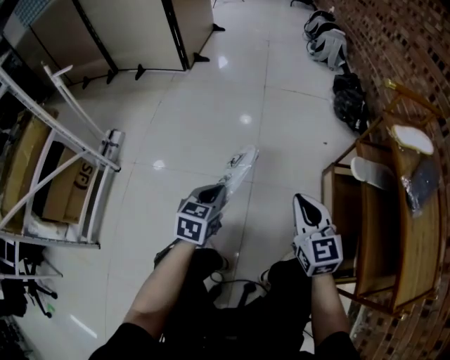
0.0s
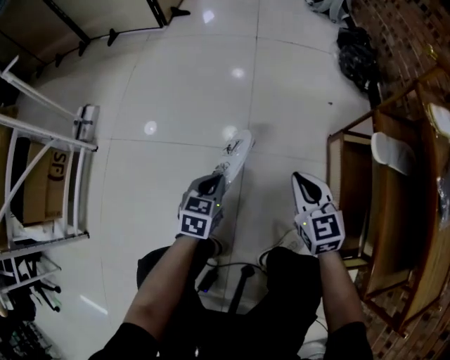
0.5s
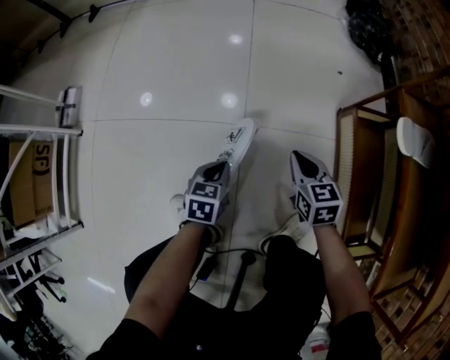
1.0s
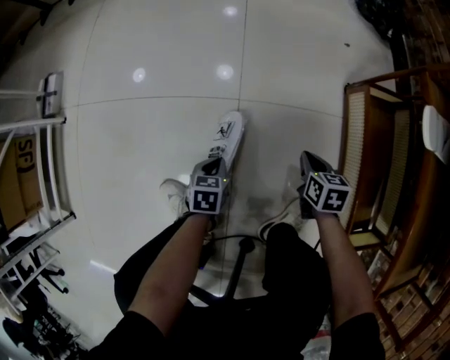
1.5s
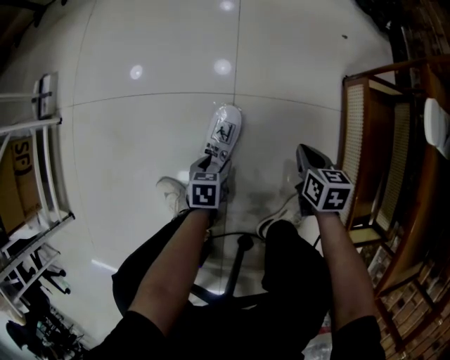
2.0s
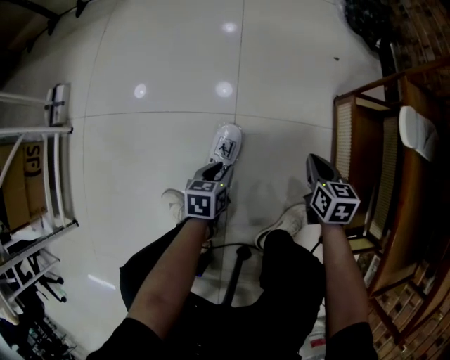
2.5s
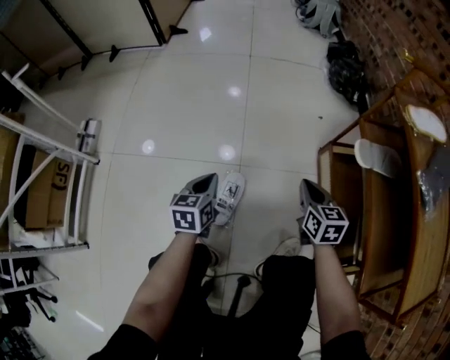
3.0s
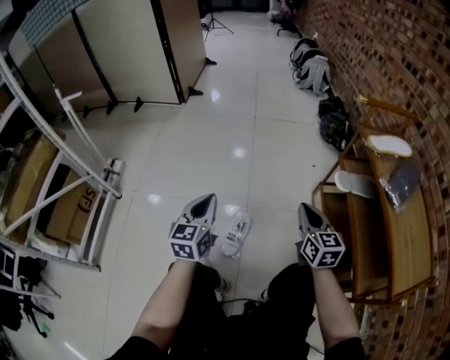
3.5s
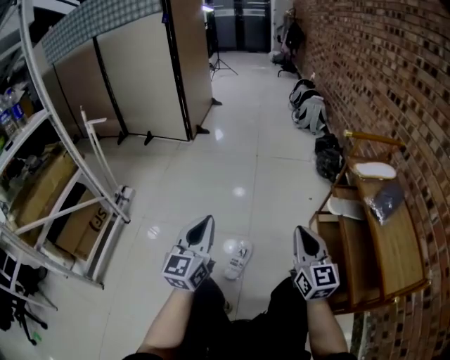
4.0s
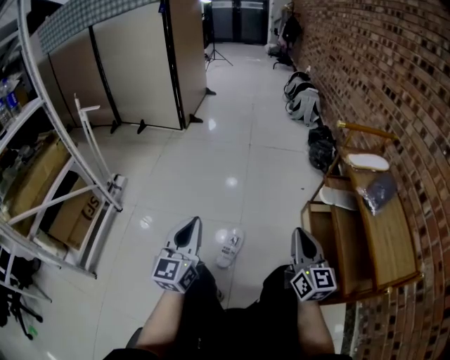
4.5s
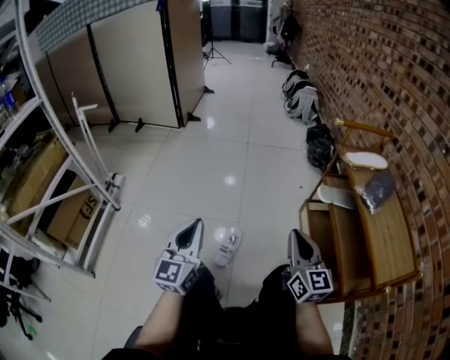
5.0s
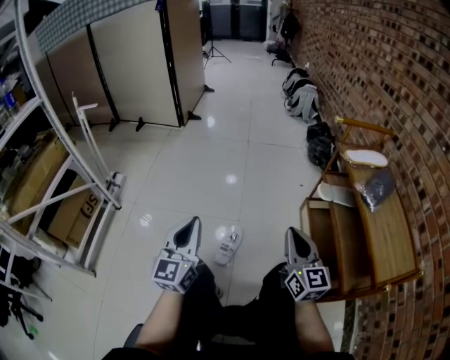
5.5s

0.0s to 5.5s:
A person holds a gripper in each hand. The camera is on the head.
0.0s to 2.0s: The grippers both shift downward by roughly 40 cm. The right gripper tilts its fingers some 40 degrees downward; the left gripper tips its fingers downward by some 30 degrees, and opens up.
2.0s to 3.5s: The grippers both shift upward by some 40 cm. The left gripper angles its fingers upward, by some 50 degrees, and closes. Meanwhile the right gripper points its fingers about 40 degrees further upward.
3.5s to 5.5s: The two grippers go roughly 15 cm backward and upward.

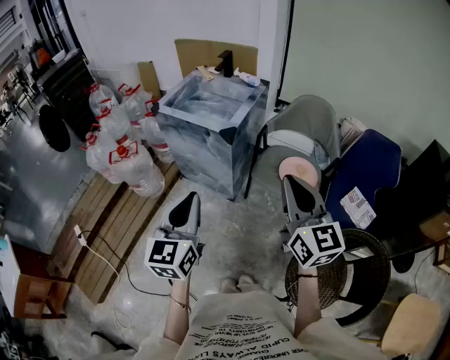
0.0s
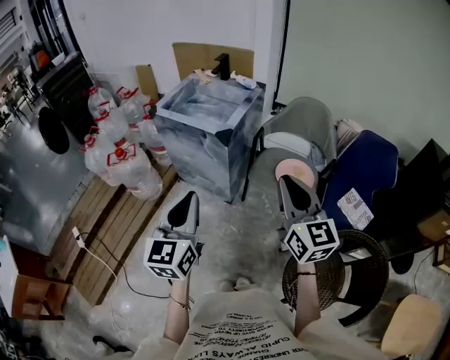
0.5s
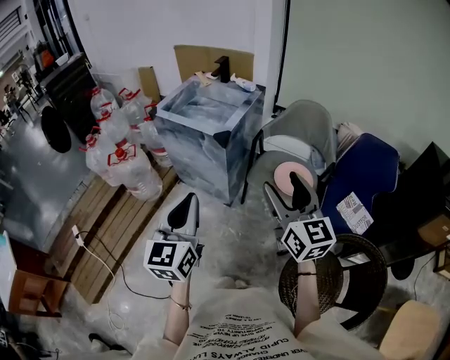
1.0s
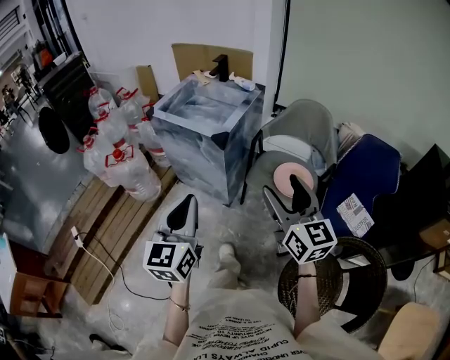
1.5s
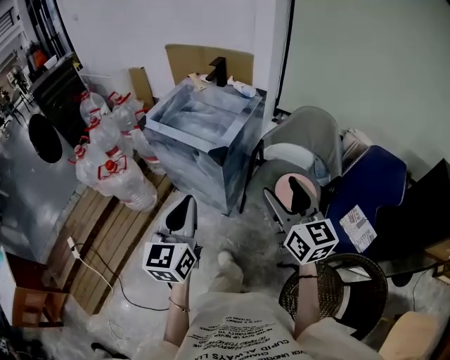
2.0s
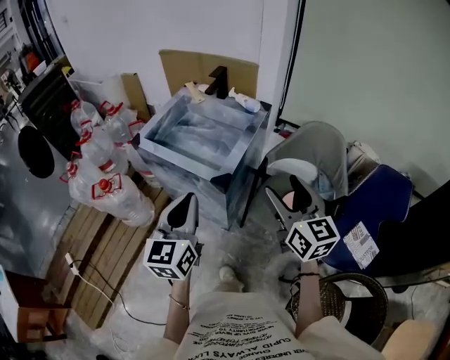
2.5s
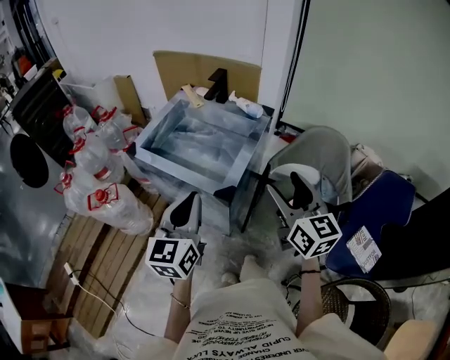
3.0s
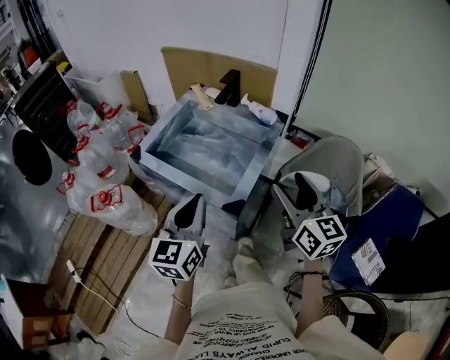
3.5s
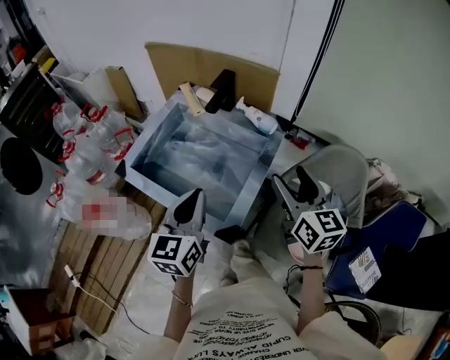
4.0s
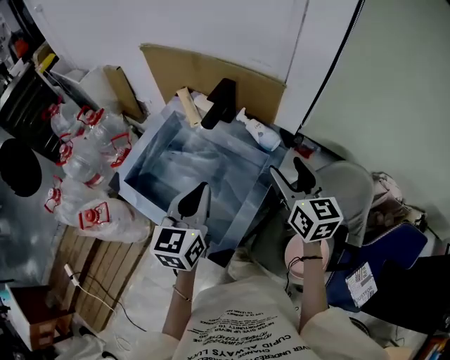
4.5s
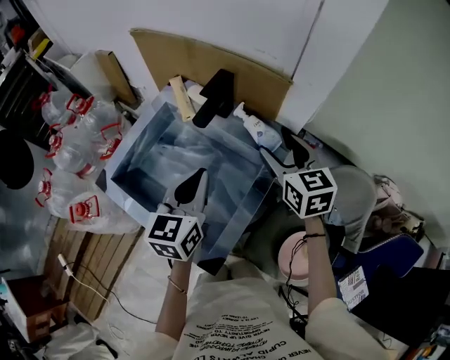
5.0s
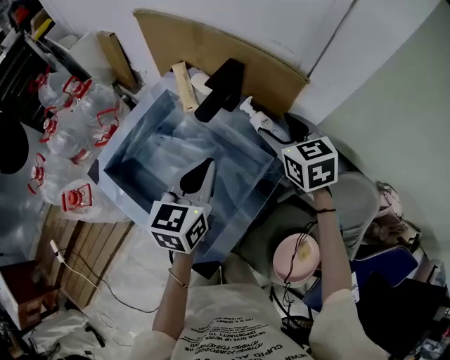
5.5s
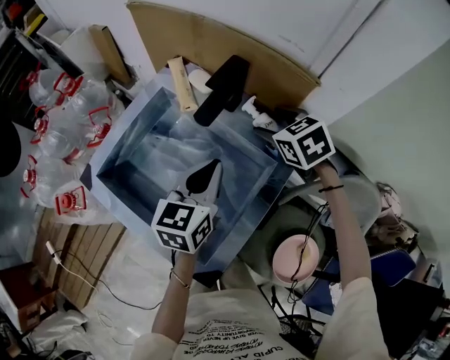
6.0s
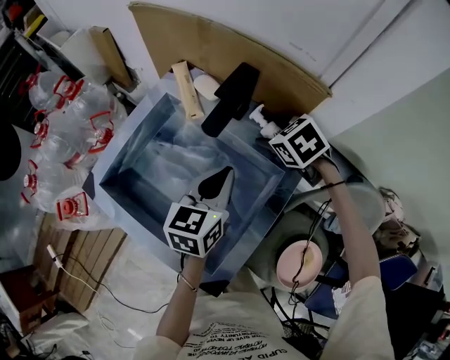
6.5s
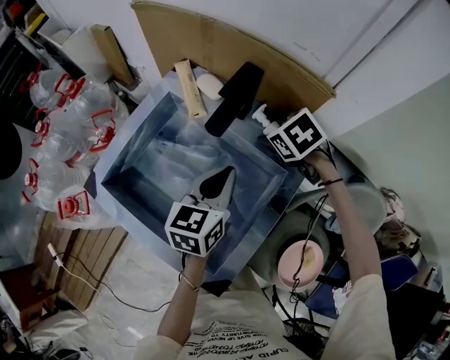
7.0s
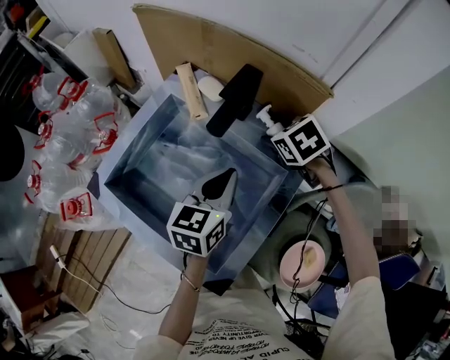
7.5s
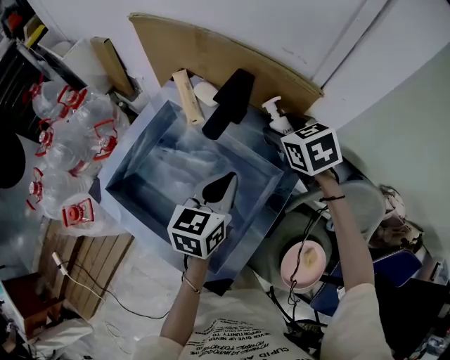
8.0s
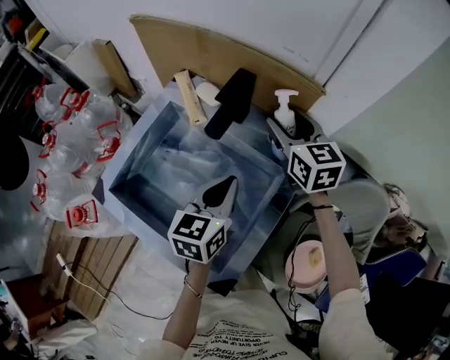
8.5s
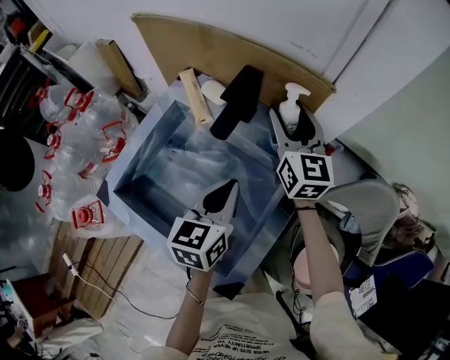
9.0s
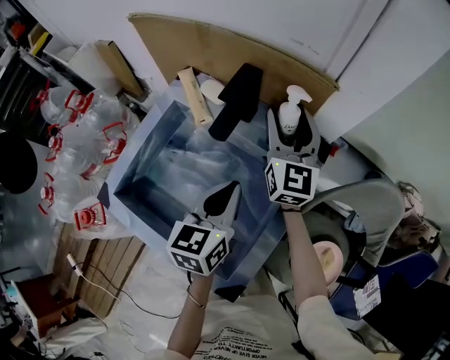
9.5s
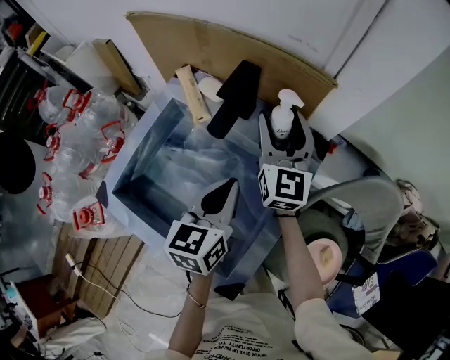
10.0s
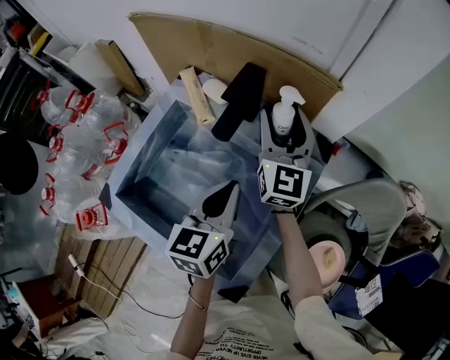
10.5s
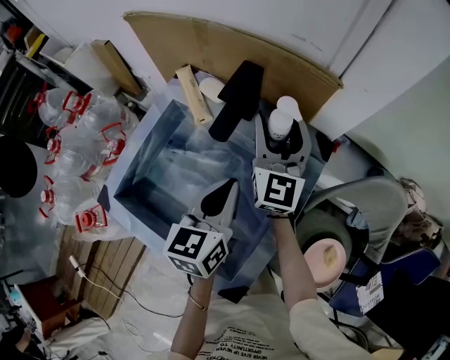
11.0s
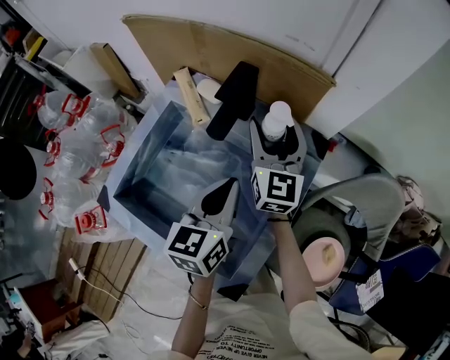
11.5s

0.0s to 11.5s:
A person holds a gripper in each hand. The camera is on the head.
0.0s to 2.0s: The left gripper is displaced forward by approximately 10 cm; the right gripper travels forward and downward by about 15 cm, and opens its fingers.
2.0s to 4.0s: Both grippers move forward, approximately 35 cm.
4.0s to 6.0s: The two grippers go about 25 cm forward and downward. The right gripper tilts its fingers approximately 40 degrees downward.
6.0s to 7.5s: The grippers move only a little.
7.5s to 9.5s: The right gripper travels upward by about 10 cm, and angles its fingers upward, by roughly 70 degrees.
9.5s to 11.5s: The grippers move only a little.

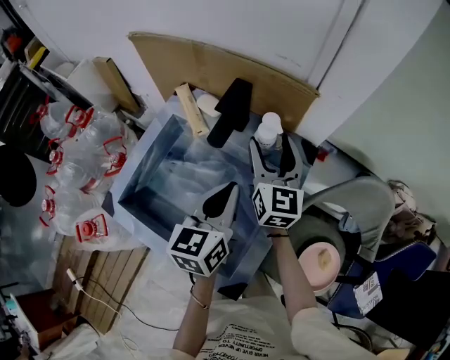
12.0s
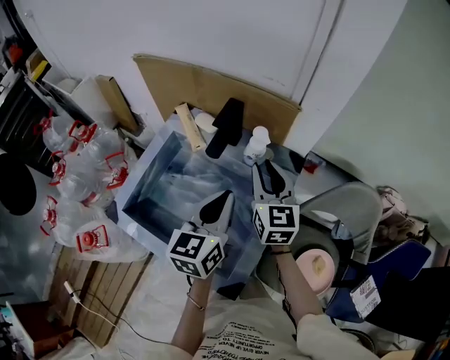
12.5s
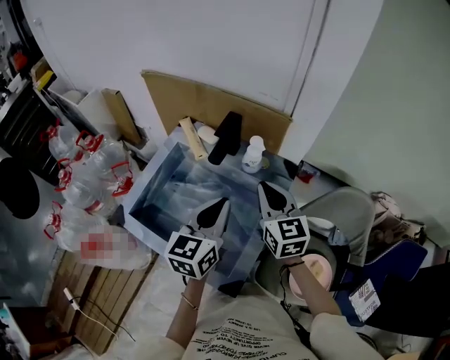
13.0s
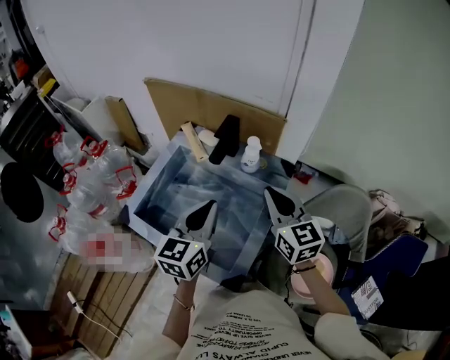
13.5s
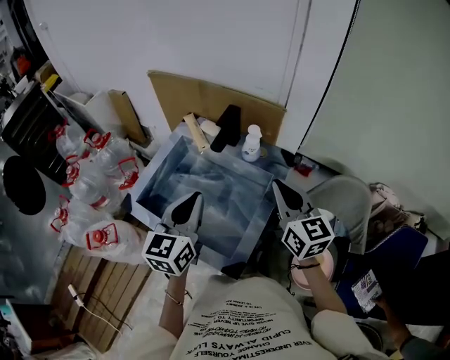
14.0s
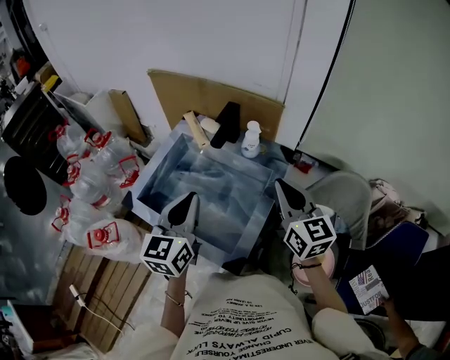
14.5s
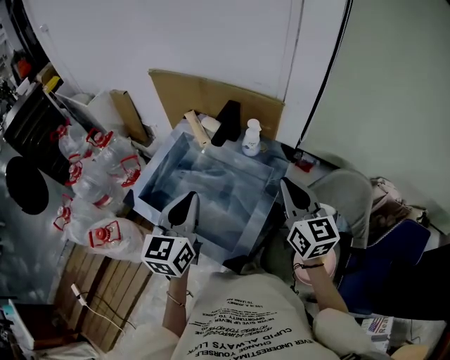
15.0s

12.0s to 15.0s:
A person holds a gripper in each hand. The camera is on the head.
12.0s to 13.5s: The right gripper shifts some 15 cm backward and upward, and closes its fingers; the left gripper goes approximately 10 cm upward and backward.
13.5s to 15.0s: The left gripper shifts some 5 cm to the left; the right gripper changes place by about 5 cm.

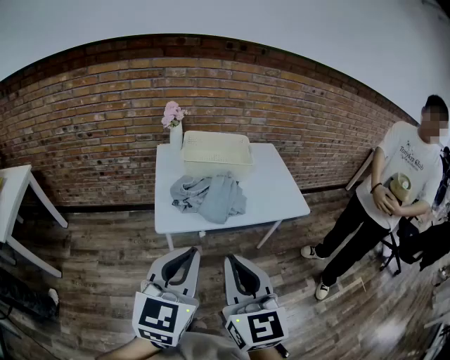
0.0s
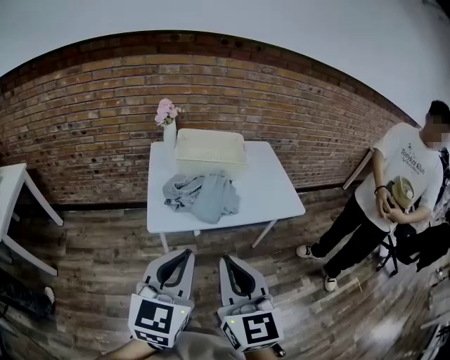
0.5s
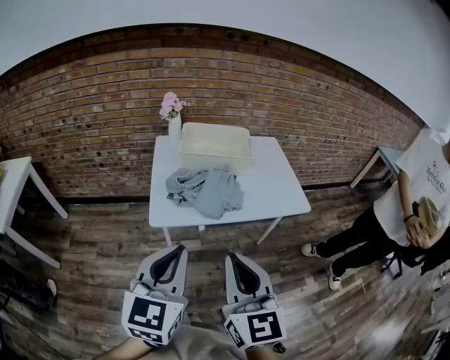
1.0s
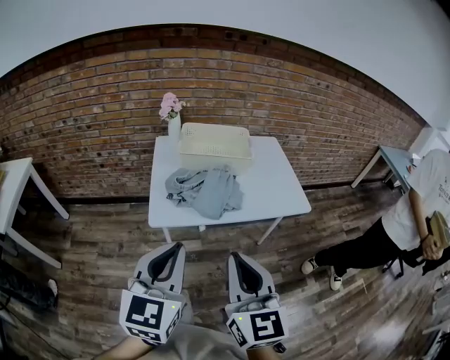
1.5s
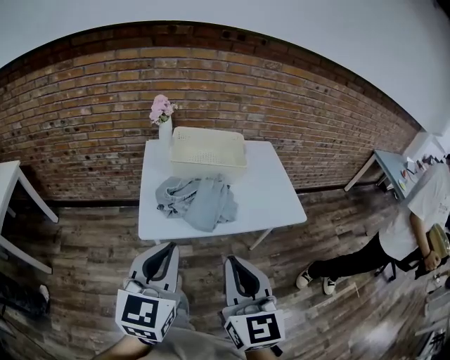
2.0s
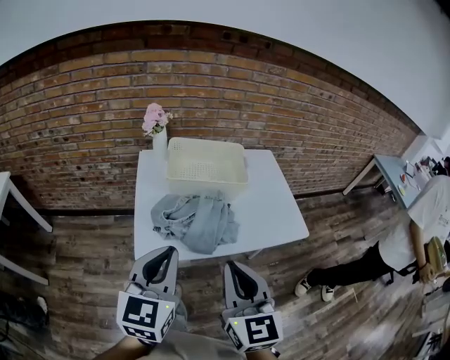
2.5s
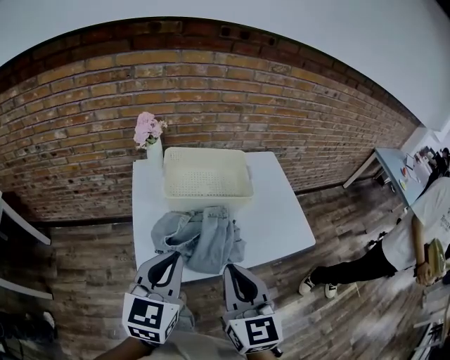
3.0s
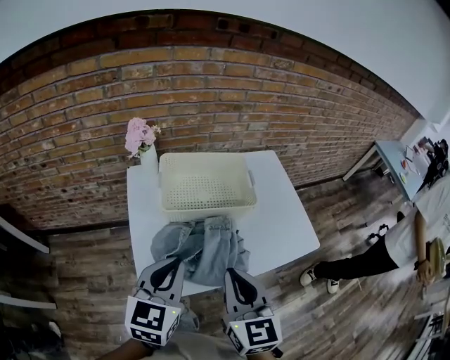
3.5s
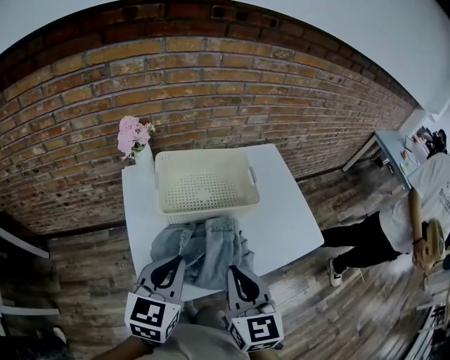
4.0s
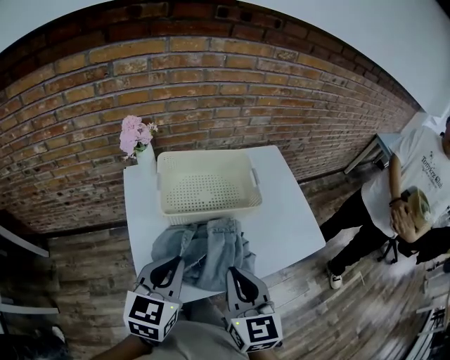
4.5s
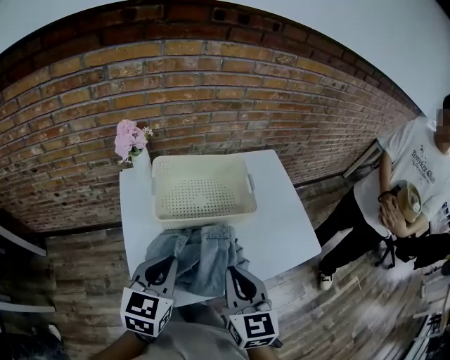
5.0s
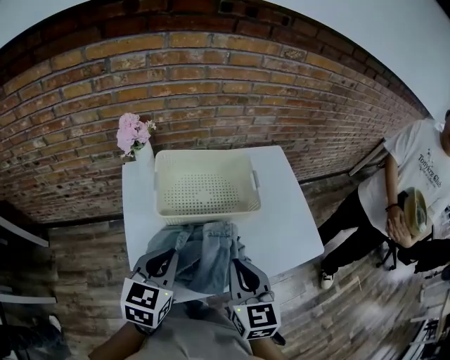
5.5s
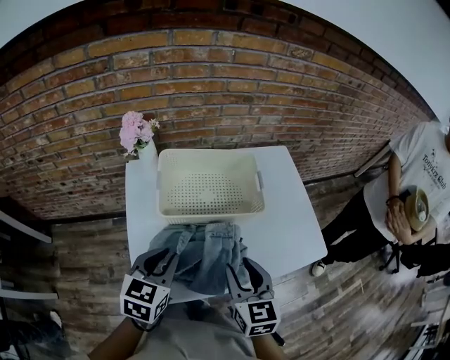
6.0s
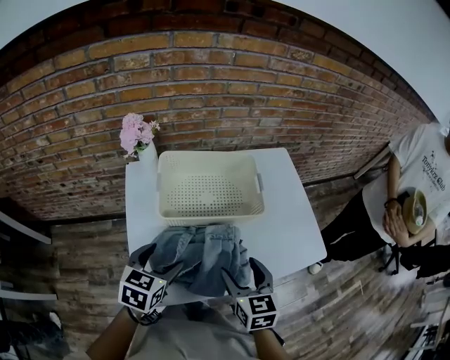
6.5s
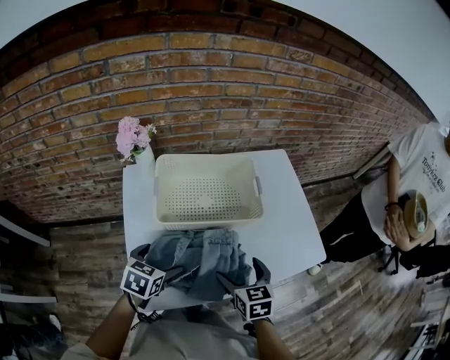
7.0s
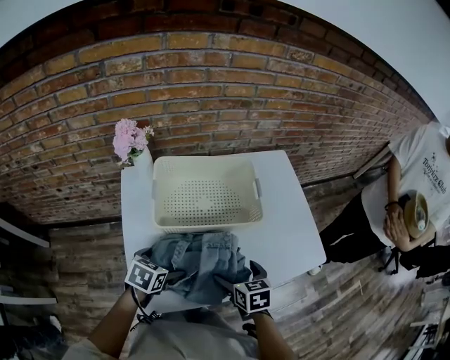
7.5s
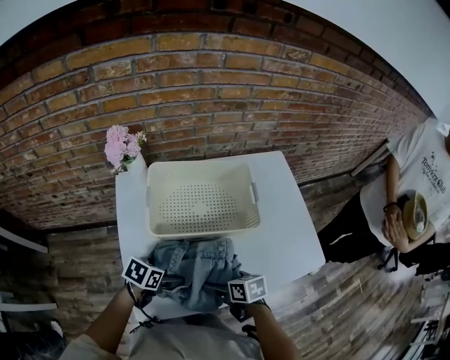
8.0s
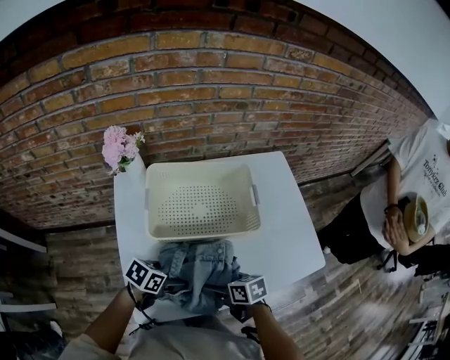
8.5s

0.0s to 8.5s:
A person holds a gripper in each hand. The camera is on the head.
0.0s to 2.0s: The two grippers go some 10 cm forward.
2.0s to 4.0s: Both grippers travel together forward, approximately 25 cm. The left gripper turns by roughly 20 degrees.
4.0s to 6.5s: The right gripper is displaced downward and forward by some 10 cm, and opens; the left gripper shifts approximately 10 cm downward, and opens.
6.5s to 8.5s: The two grippers go roughly 15 cm downward. The right gripper changes its angle by some 40 degrees, and opens its fingers. The left gripper swivels approximately 40 degrees.
